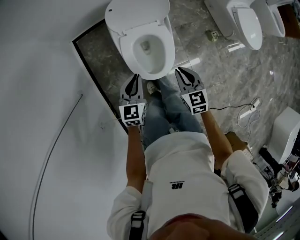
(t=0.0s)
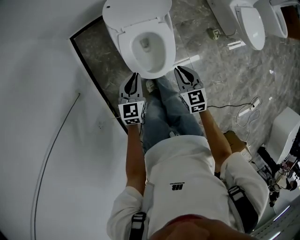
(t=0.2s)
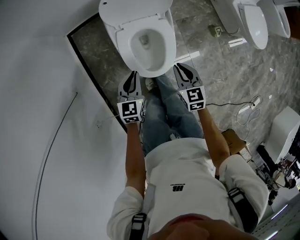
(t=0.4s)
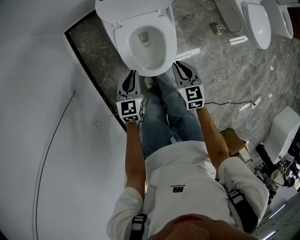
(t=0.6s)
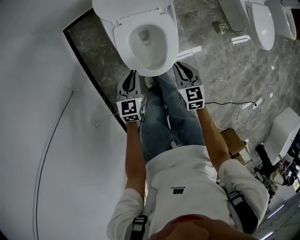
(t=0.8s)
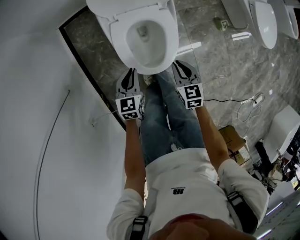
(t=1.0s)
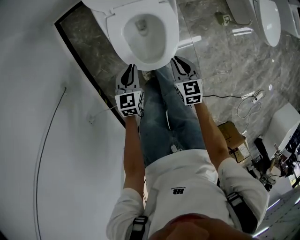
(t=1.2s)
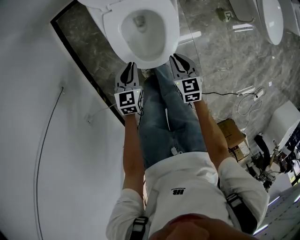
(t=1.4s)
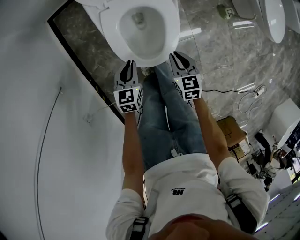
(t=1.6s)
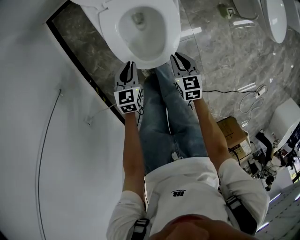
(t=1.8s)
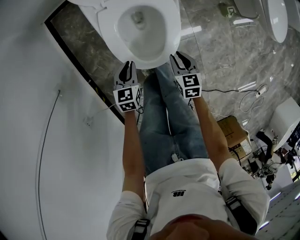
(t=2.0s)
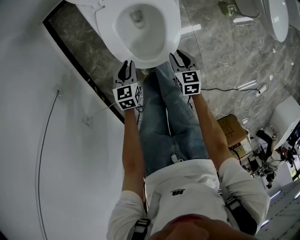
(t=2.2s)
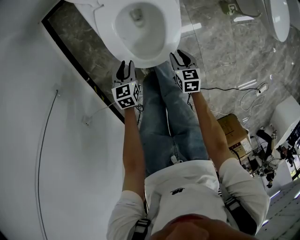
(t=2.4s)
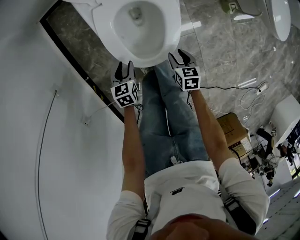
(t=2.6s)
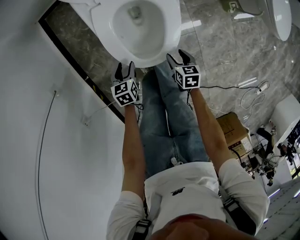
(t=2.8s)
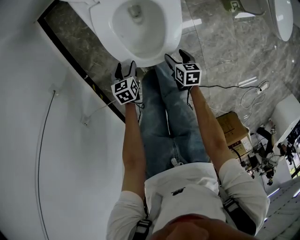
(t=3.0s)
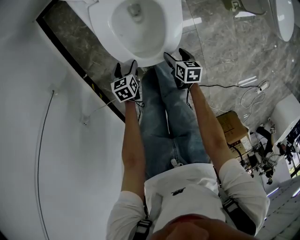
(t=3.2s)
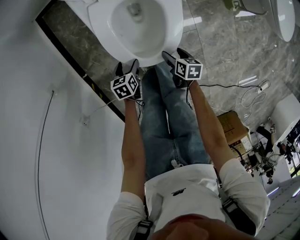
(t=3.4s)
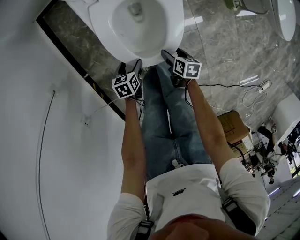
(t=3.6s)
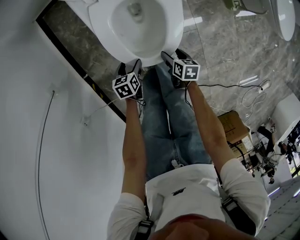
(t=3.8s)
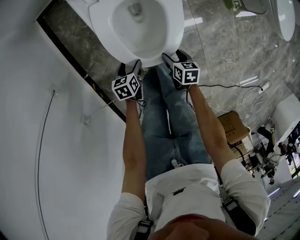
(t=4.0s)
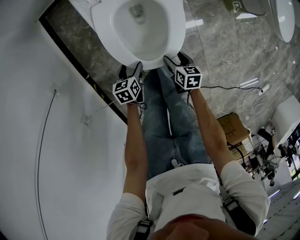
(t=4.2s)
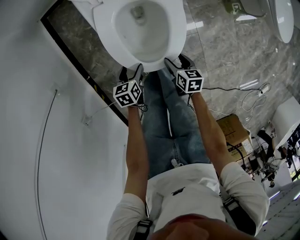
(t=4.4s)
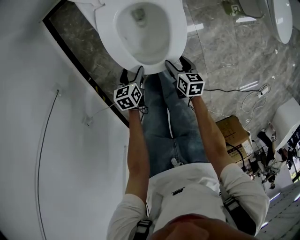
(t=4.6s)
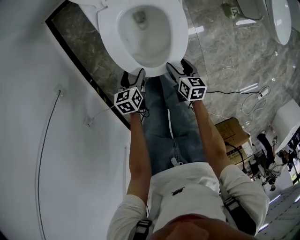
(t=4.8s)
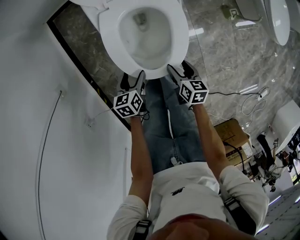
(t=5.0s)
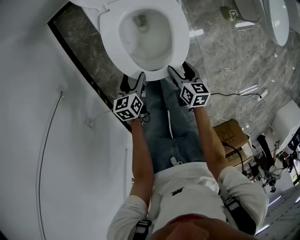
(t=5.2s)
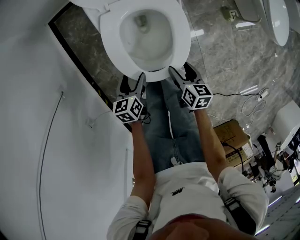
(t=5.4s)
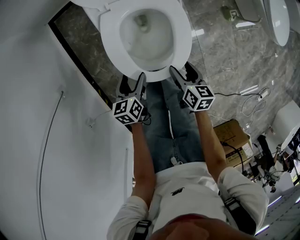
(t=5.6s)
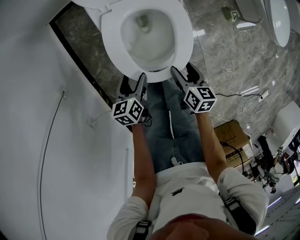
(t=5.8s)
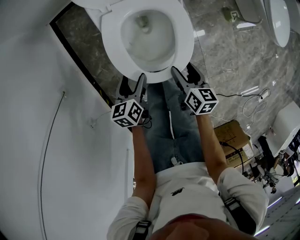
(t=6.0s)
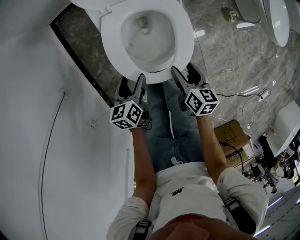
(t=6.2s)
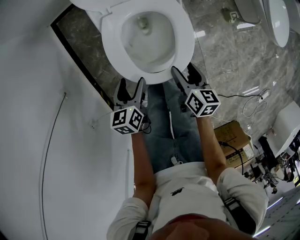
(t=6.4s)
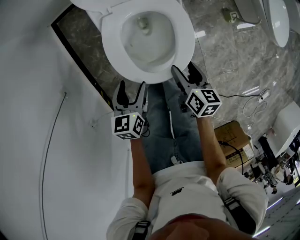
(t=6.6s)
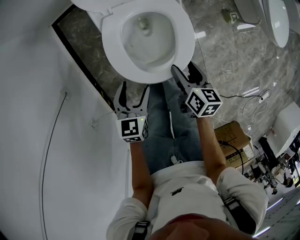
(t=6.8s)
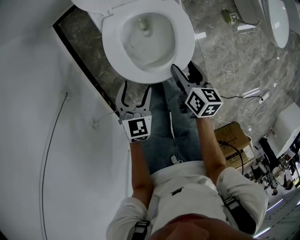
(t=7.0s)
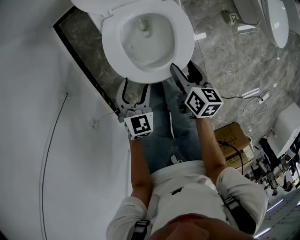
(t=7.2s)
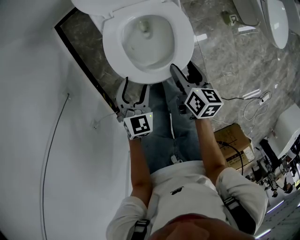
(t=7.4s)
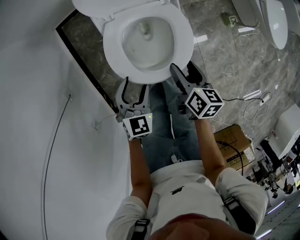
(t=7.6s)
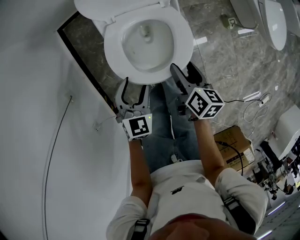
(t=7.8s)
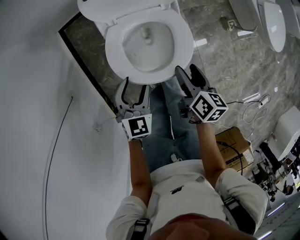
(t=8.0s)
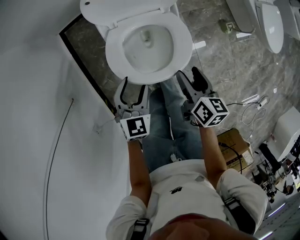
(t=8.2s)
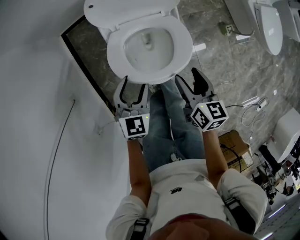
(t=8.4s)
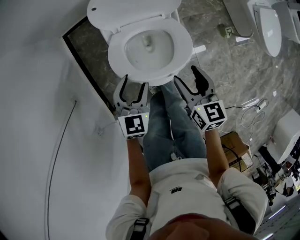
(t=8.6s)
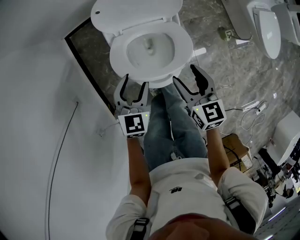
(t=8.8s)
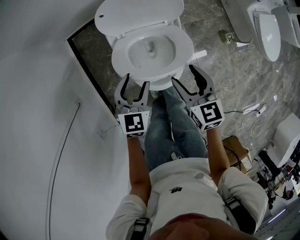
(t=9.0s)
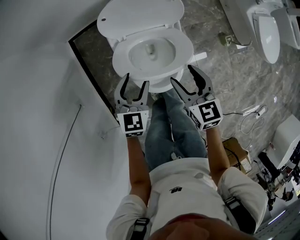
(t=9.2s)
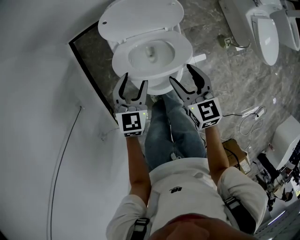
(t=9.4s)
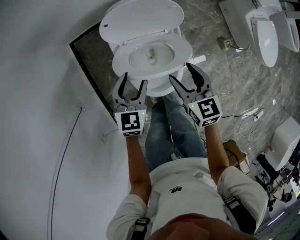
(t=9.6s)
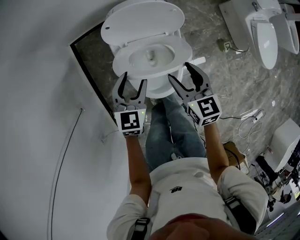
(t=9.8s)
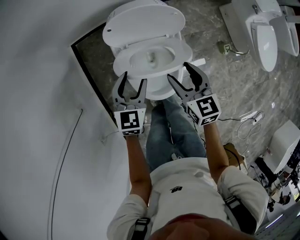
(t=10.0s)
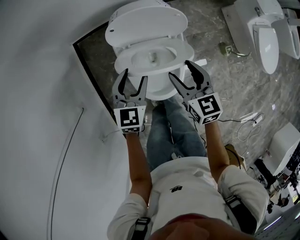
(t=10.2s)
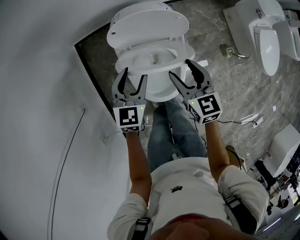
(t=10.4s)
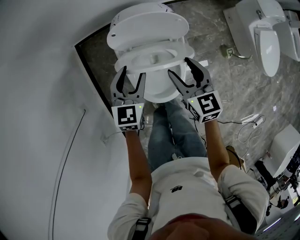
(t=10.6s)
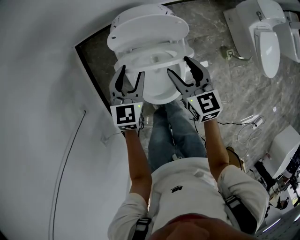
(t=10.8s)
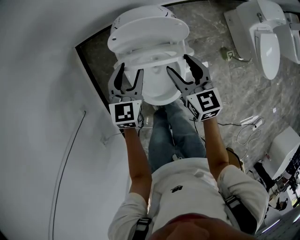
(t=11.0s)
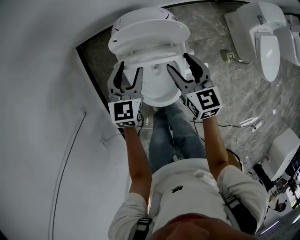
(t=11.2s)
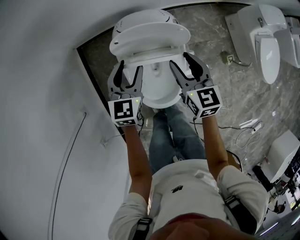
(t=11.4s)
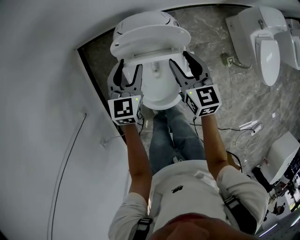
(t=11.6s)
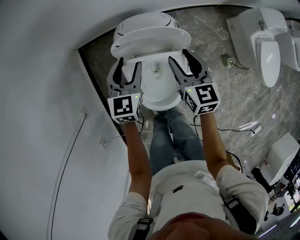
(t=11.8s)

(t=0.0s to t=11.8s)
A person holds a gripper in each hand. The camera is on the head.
t=0.0s - t=1.4s: The grippers both shift downward by approximately 20 cm.
t=1.4s - t=3.0s: Both grippers move downward, about 15 cm. The left gripper swivels approximately 20 degrees, and opens, while the right gripper turns by roughly 30 degrees, and opens up.
t=3.0s - t=4.4s: There are only small adjustments of the grippers.
t=4.4s - t=6.0s: The two grippers go about 15 cm upward.
t=6.0s - t=7.4s: Both grippers move upward, approximately 5 cm. The left gripper twists about 50 degrees clockwise, seen from behind.
t=7.4s - t=8.8s: The right gripper is displaced upward and forward by roughly 15 cm, and rotates about 30 degrees; the left gripper goes about 15 cm forward and upward.
t=8.8s - t=10.4s: Both grippers travel together forward, about 10 cm.
t=10.4s - t=11.8s: Both grippers move forward, some 10 cm.

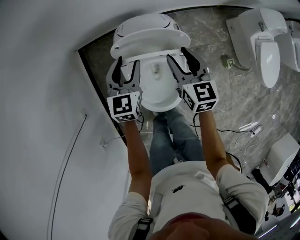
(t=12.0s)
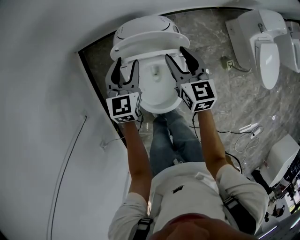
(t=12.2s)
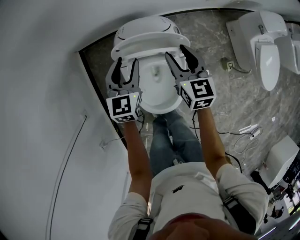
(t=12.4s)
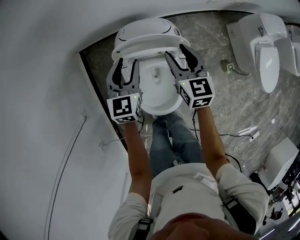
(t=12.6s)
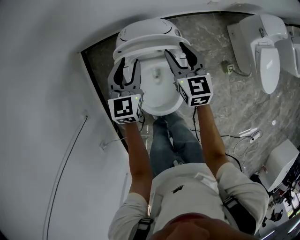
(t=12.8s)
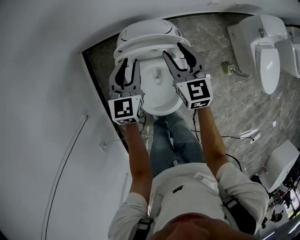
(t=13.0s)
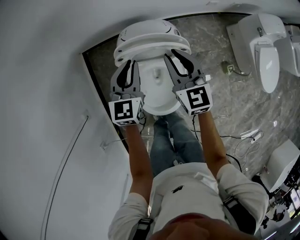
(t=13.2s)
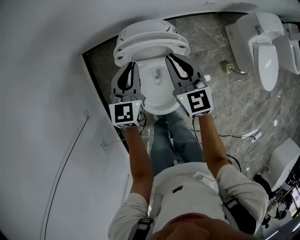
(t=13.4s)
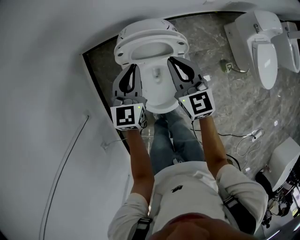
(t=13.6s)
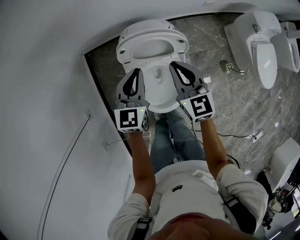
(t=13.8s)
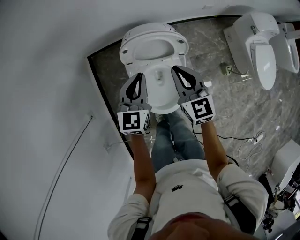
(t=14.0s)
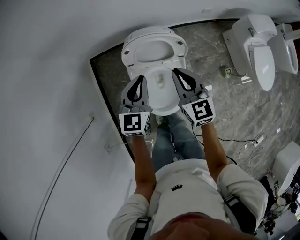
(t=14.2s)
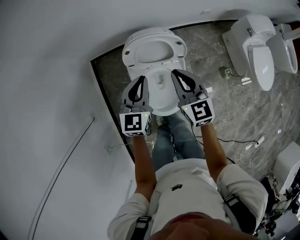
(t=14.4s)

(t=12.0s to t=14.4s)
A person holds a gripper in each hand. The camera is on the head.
t=12.0s - t=13.2s: The right gripper is displaced upward by about 5 cm, and closes its fingers, while the left gripper closes its fingers.
t=13.2s - t=14.4s: Both grippers move backward and upward, roughly 10 cm.
